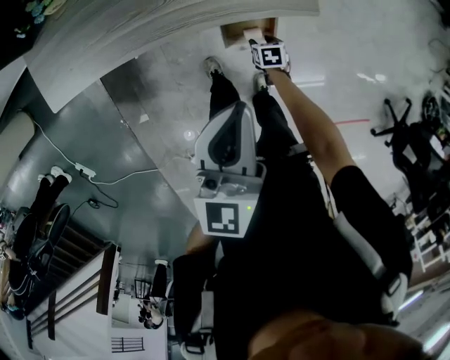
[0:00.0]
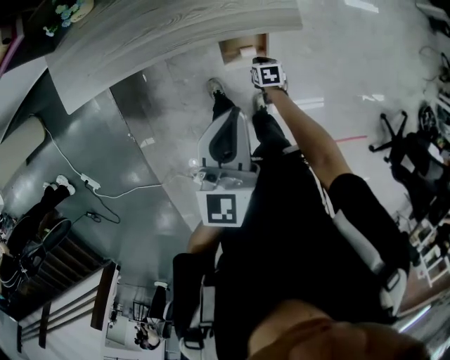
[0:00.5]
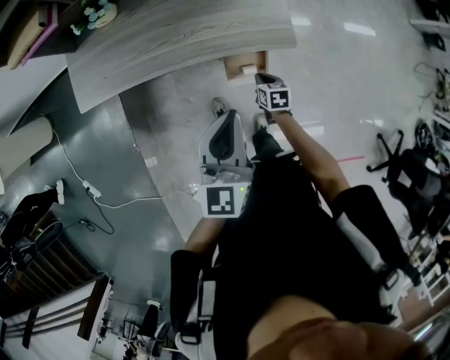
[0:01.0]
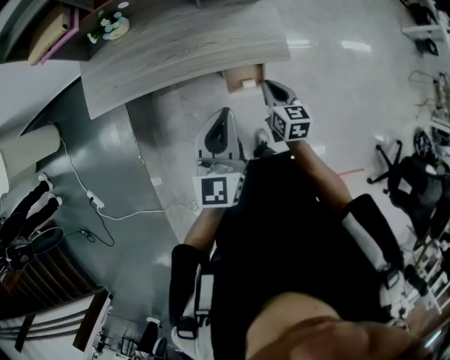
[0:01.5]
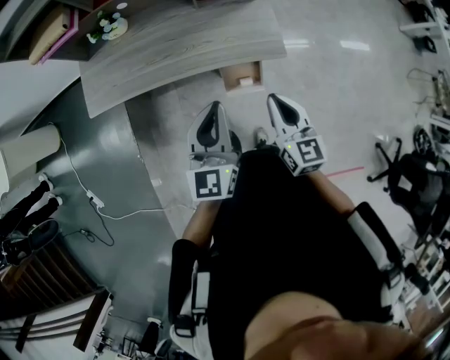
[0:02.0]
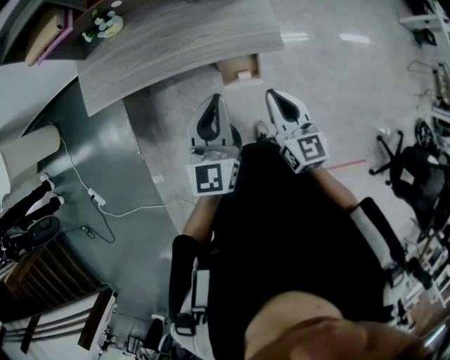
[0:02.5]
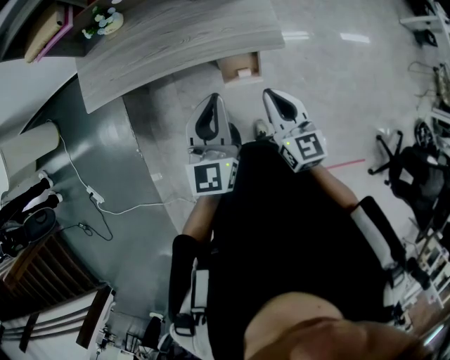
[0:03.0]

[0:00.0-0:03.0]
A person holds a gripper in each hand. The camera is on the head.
0:00.0 to 0:01.5: The right gripper moves upward, some 40 cm, tips its fingers upward by about 40 degrees, and closes. Meanwhile the left gripper goes about 10 cm upward.
0:01.5 to 0:03.0: The right gripper moves upward and backward, approximately 15 cm, and changes its angle by roughly 20 degrees.

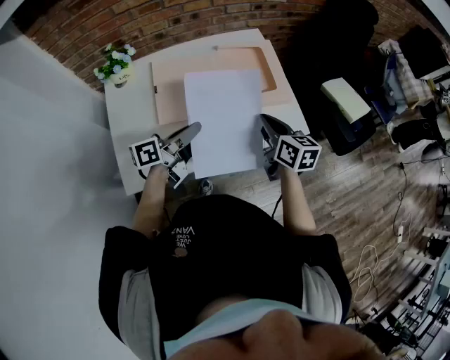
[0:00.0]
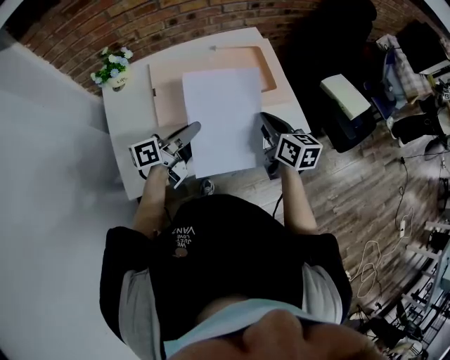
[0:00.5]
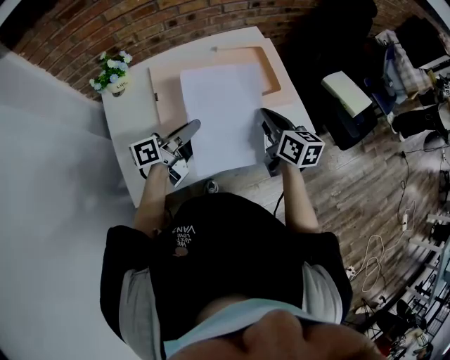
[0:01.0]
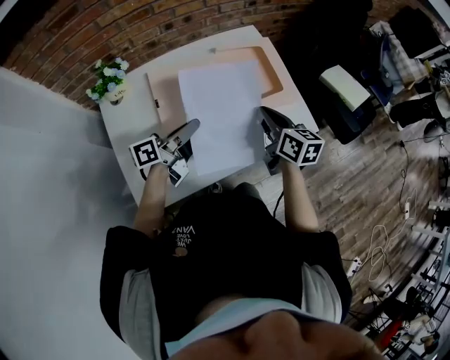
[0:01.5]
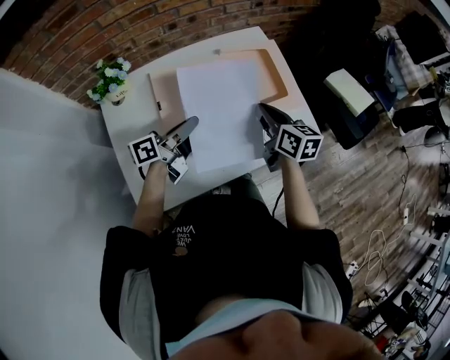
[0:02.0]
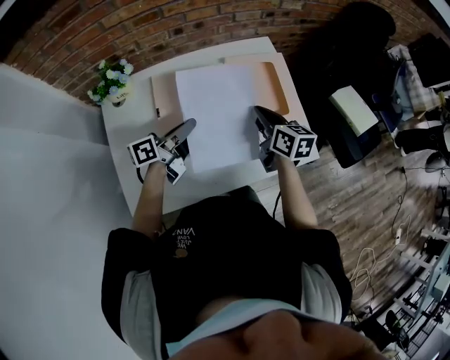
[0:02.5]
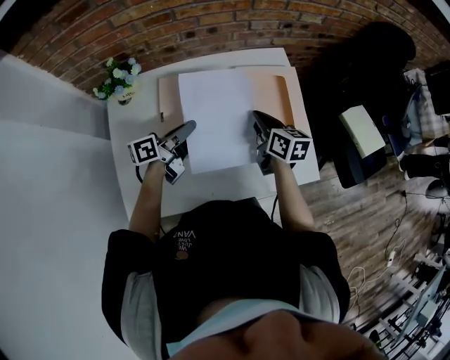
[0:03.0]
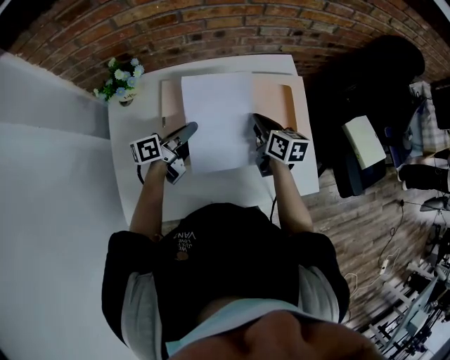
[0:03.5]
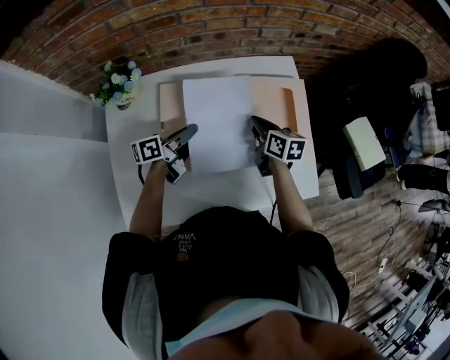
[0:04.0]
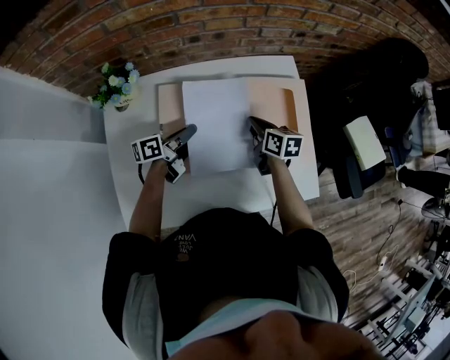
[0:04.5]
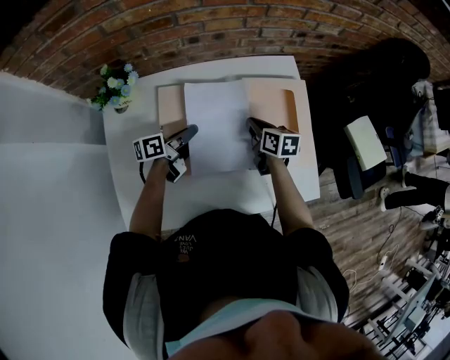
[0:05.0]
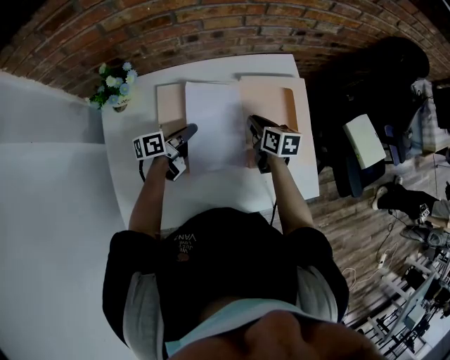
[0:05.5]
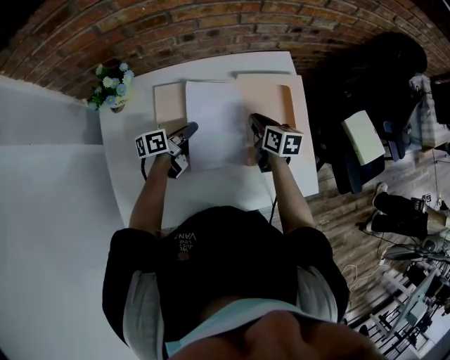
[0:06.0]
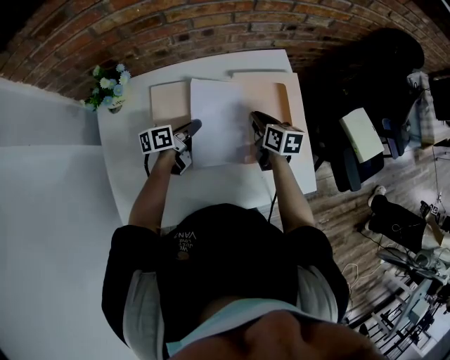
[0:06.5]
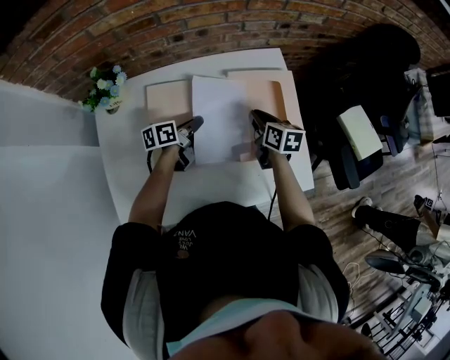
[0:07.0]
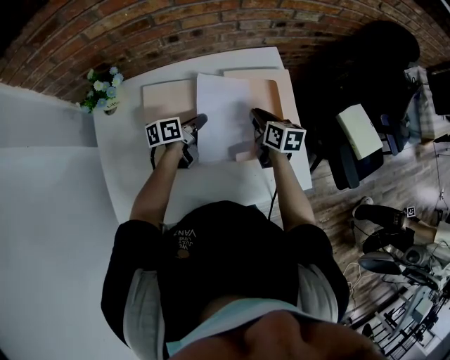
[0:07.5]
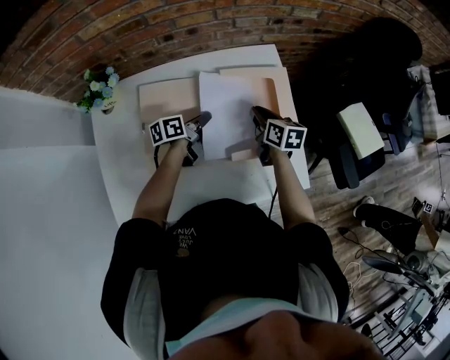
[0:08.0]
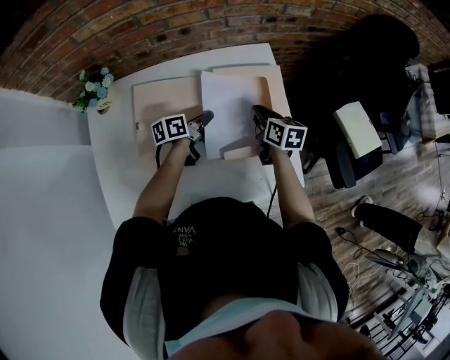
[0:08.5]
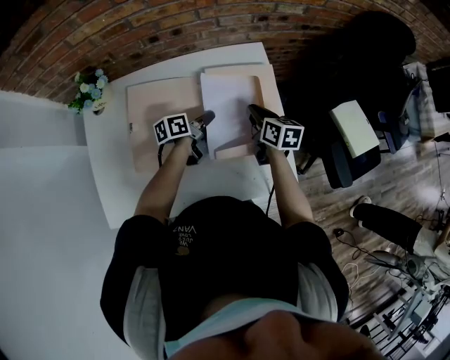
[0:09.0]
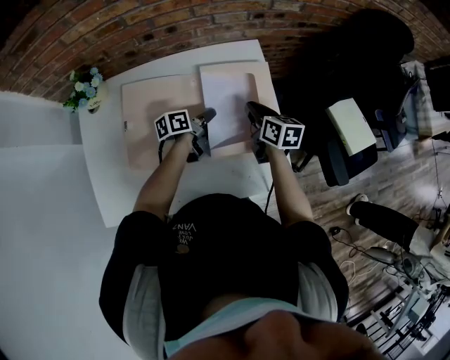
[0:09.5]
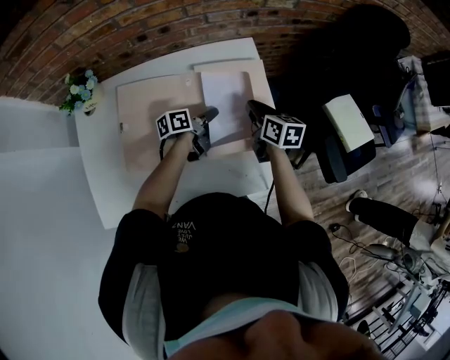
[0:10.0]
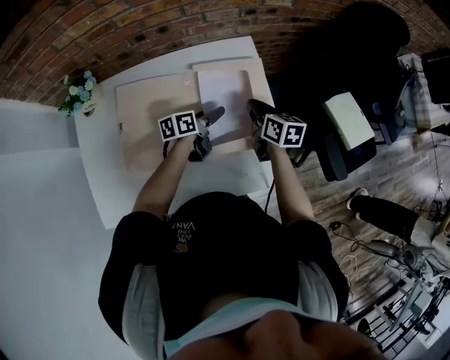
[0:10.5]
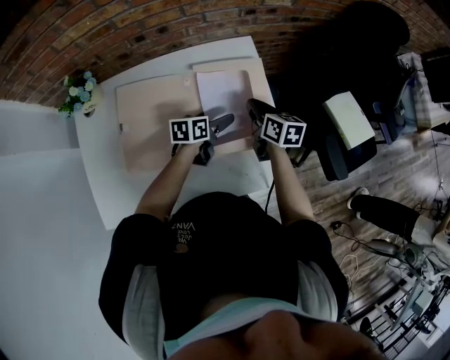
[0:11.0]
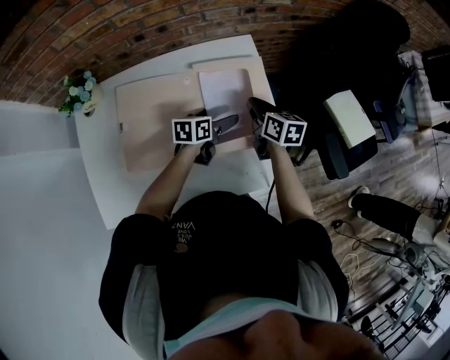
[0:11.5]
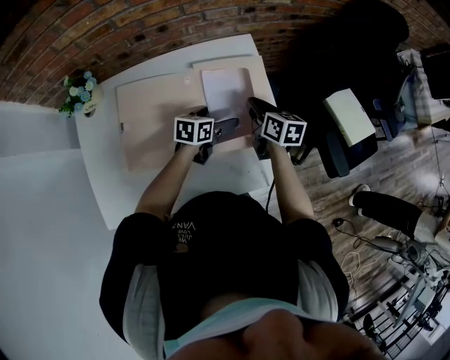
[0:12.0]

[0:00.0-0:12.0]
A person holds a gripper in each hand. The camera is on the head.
0:00.0 to 0:02.0: Both grippers travel together forward and to the left, about 10 cm.
0:02.0 to 0:04.0: Both grippers travel together forward and downward, some 15 cm.
0:04.0 to 0:06.0: The left gripper heads downward, covering approximately 5 cm.
0:06.0 to 0:08.0: The right gripper goes approximately 5 cm to the right; the left gripper heads to the right, covering about 10 cm.
0:08.0 to 0:10.0: The right gripper moves to the right, approximately 5 cm. The left gripper travels to the right by about 10 cm.
0:10.0 to 0:12.0: The left gripper changes its angle by about 40 degrees, and opens.

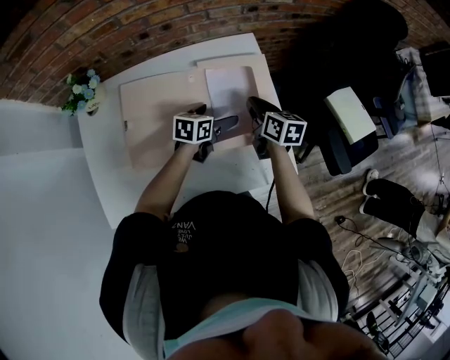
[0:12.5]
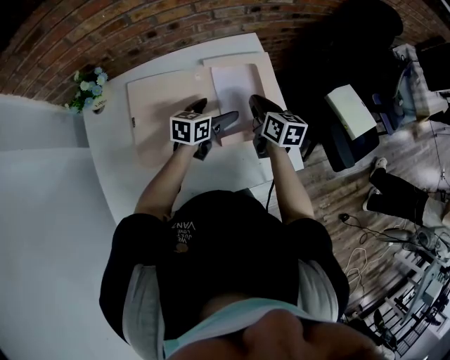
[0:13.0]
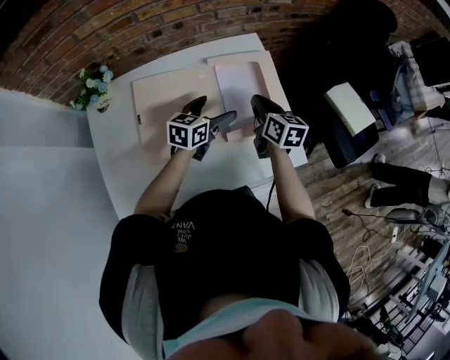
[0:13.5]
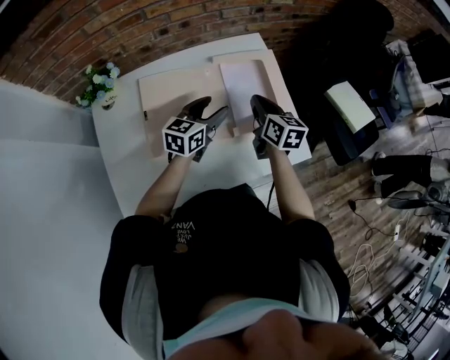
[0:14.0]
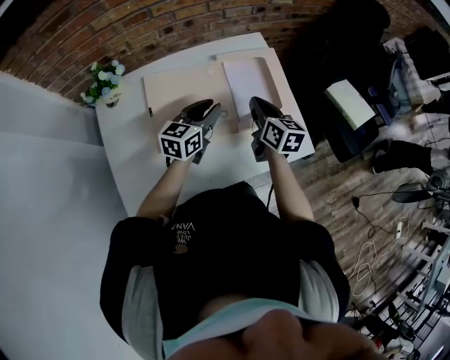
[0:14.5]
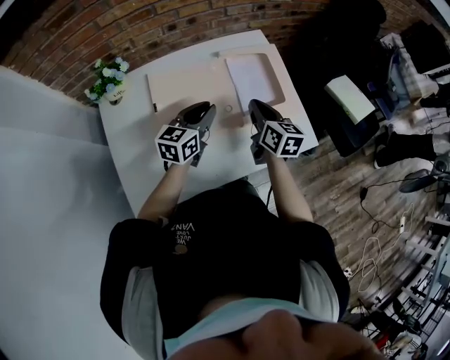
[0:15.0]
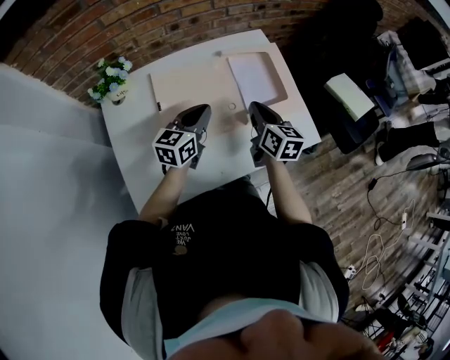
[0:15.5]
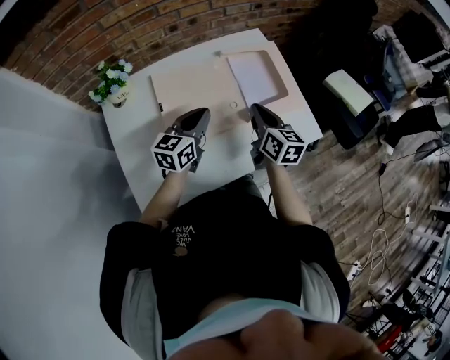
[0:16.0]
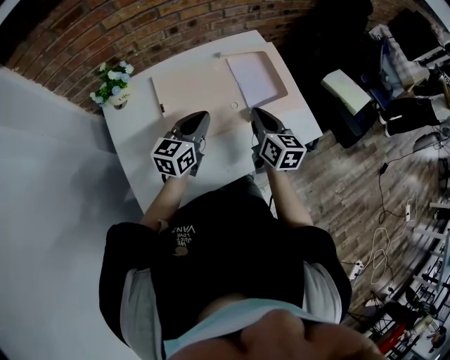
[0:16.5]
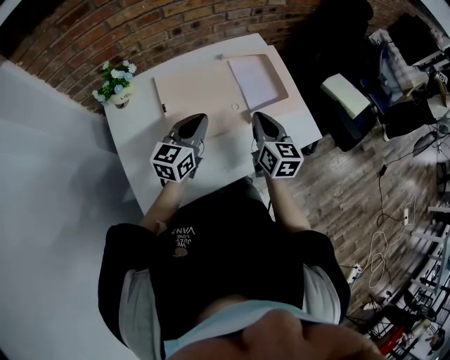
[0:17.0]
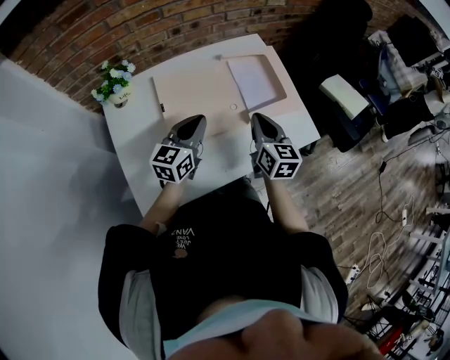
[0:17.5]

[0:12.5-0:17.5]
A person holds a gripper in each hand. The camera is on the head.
0:12.5 to 0:15.0: The left gripper shifts roughly 20 cm to the left, upward and backward, turns by some 30 degrees, and closes. Meanwhile the right gripper is displaced backward, to the left and upward by about 15 cm.
0:15.0 to 0:17.5: Both grippers travel together backward, approximately 5 cm.

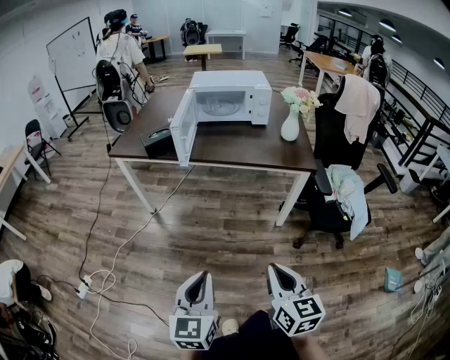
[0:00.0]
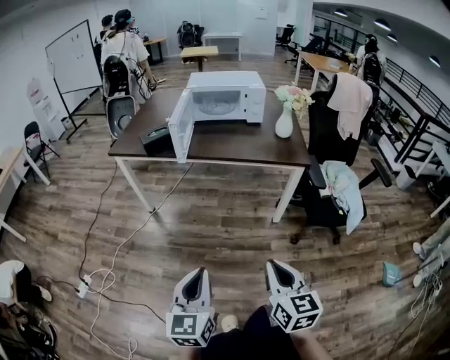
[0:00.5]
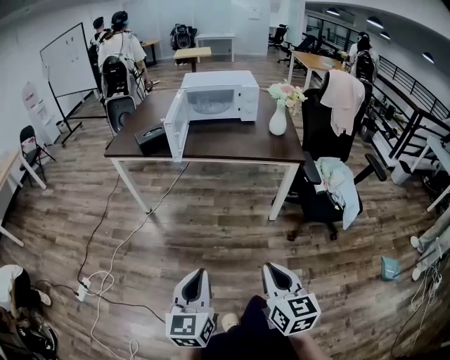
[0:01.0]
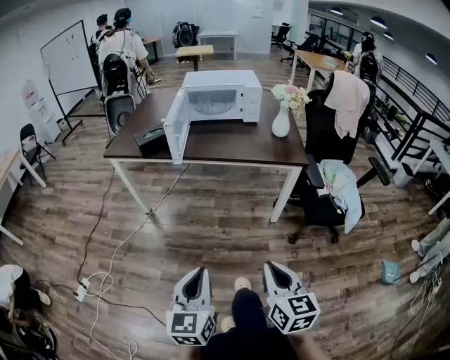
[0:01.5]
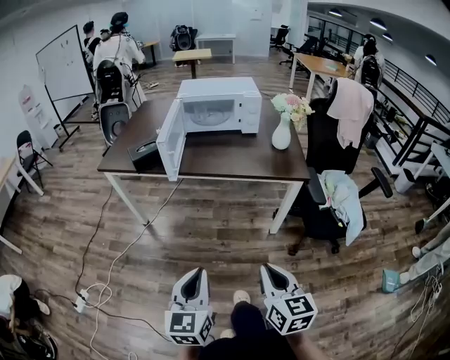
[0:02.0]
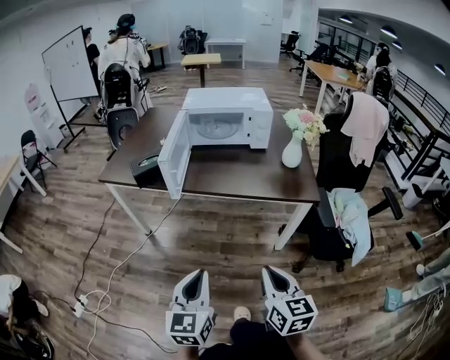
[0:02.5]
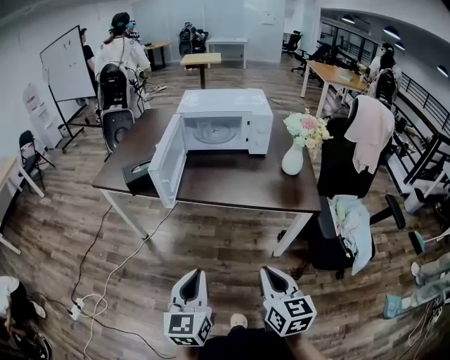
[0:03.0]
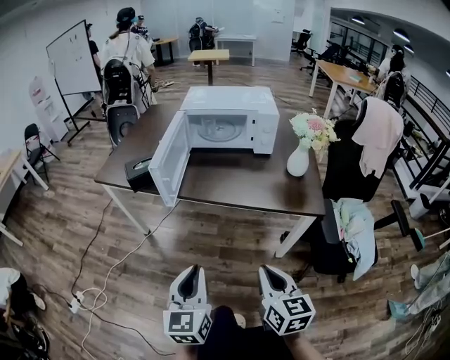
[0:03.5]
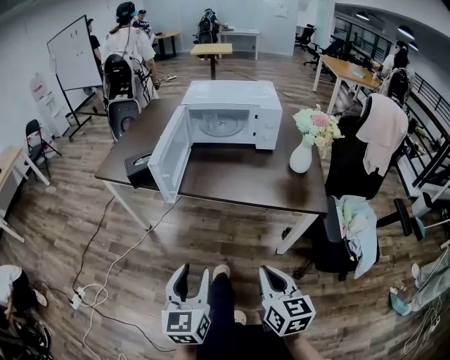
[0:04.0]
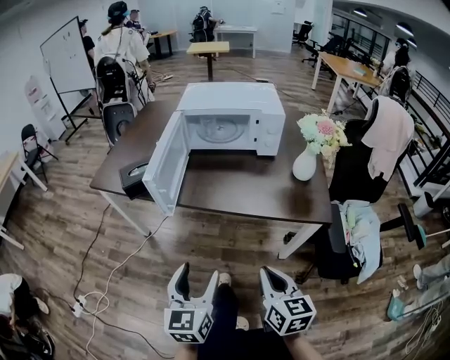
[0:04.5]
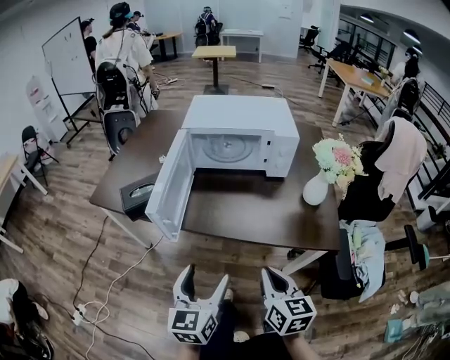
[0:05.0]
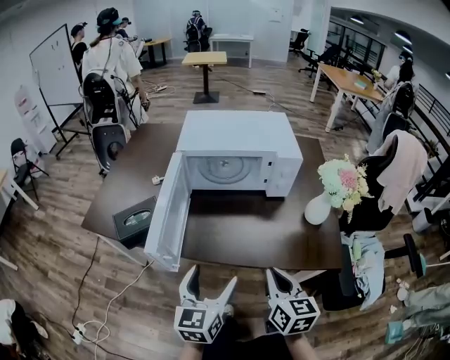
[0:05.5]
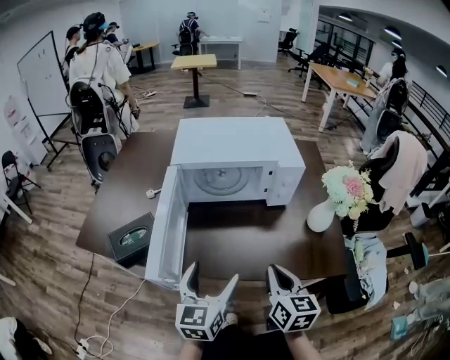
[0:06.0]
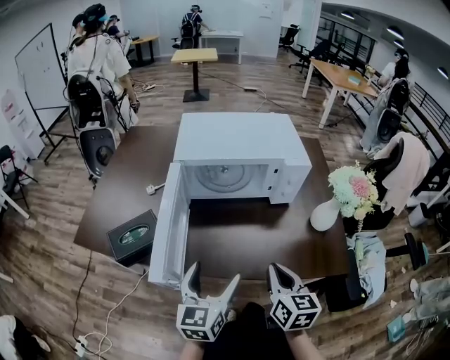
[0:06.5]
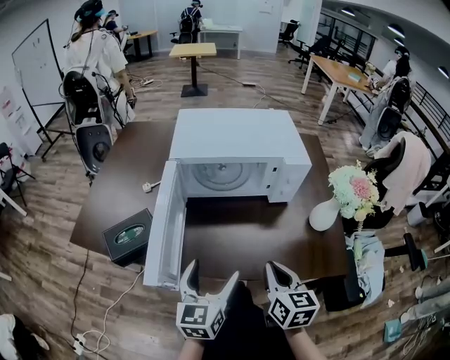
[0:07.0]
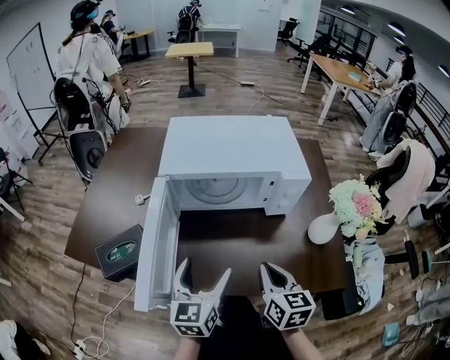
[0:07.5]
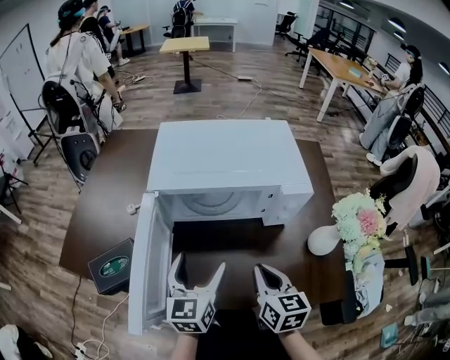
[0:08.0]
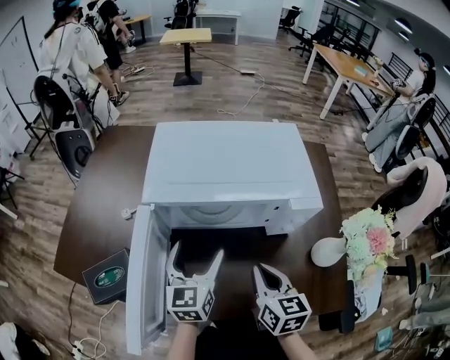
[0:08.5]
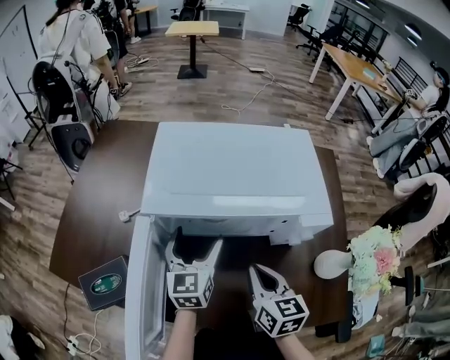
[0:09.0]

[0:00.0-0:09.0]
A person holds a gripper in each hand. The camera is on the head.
0:00.0 to 0:02.0: Both grippers travel together forward, about 5 cm.
0:02.0 to 0:04.5: The grippers both shift forward by roughly 25 cm. The left gripper opens its fingers.
0:04.5 to 0:07.0: The grippers both shift forward by roughly 30 cm.
0:07.0 to 0:09.0: The grippers both shift forward by approximately 25 cm.
